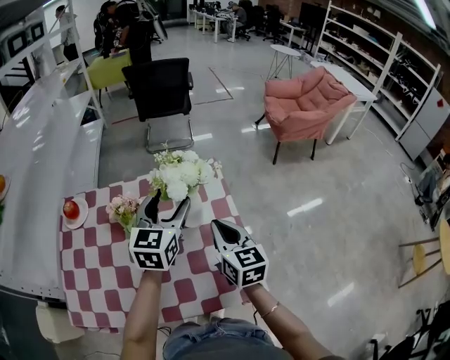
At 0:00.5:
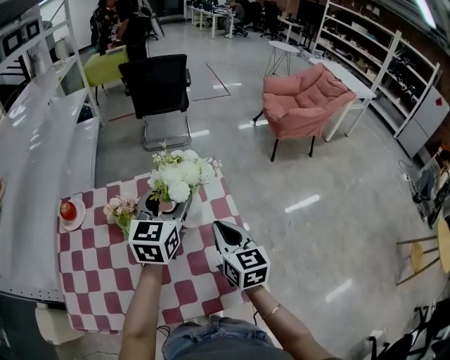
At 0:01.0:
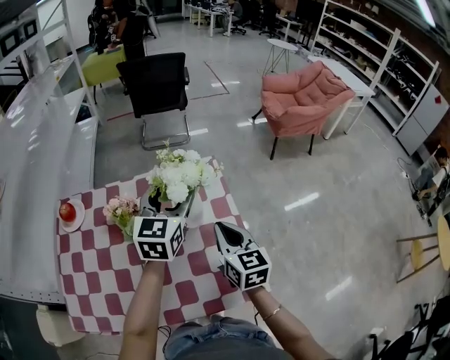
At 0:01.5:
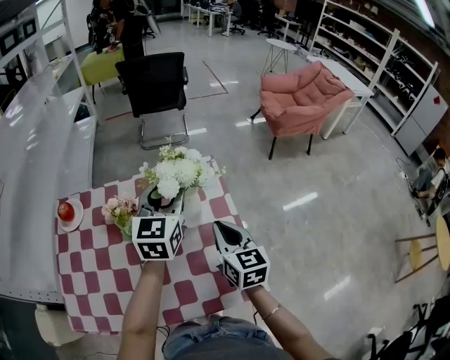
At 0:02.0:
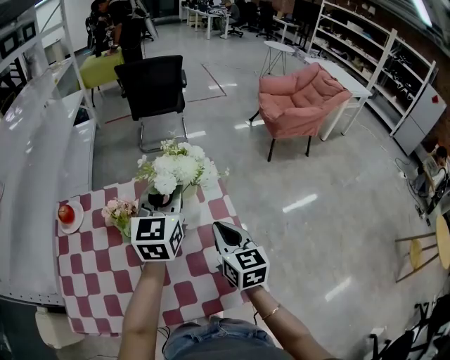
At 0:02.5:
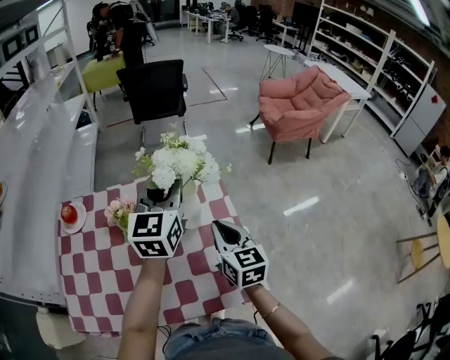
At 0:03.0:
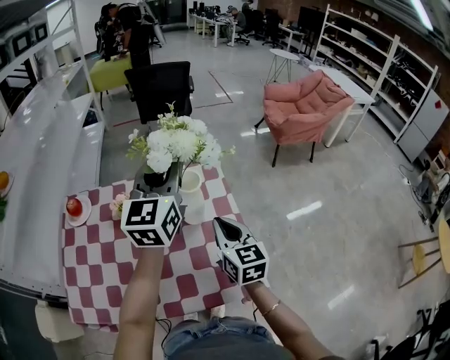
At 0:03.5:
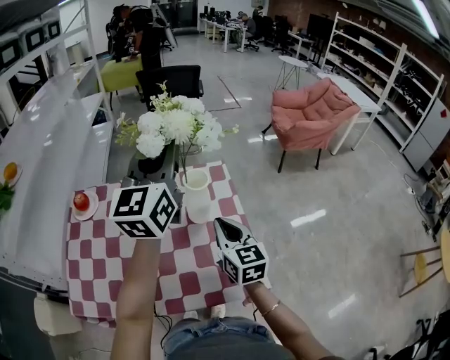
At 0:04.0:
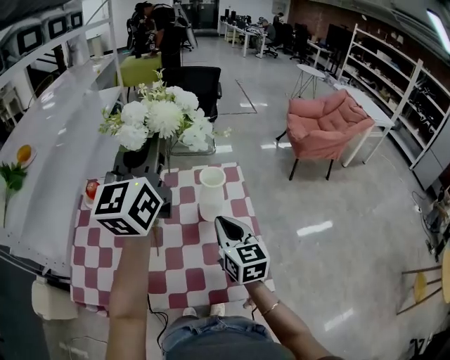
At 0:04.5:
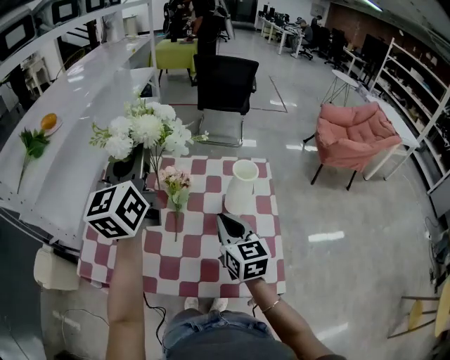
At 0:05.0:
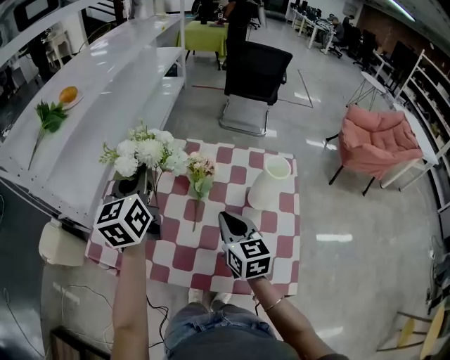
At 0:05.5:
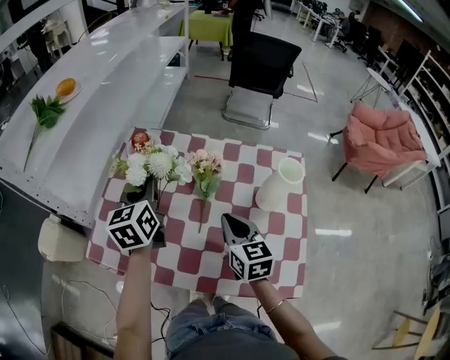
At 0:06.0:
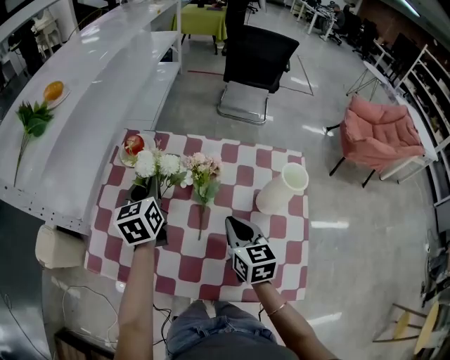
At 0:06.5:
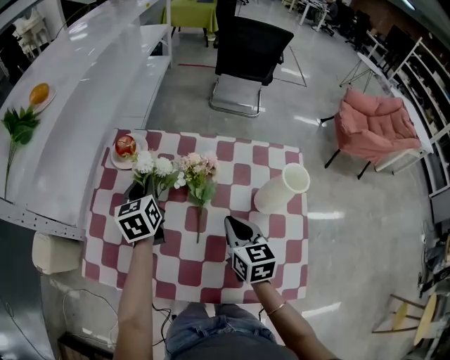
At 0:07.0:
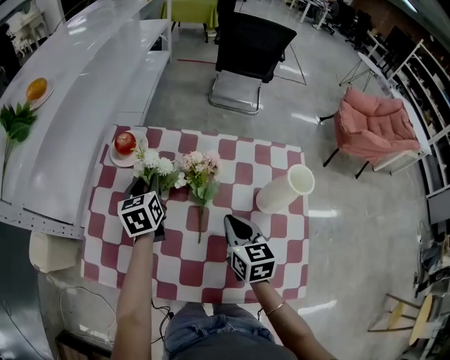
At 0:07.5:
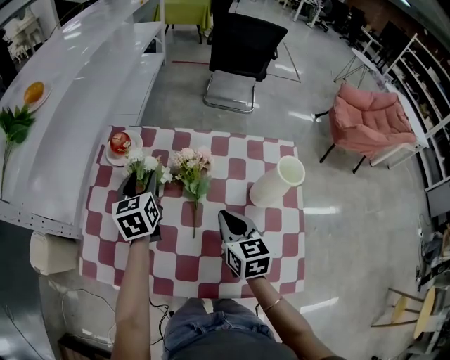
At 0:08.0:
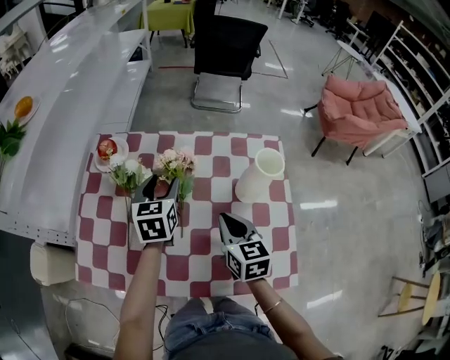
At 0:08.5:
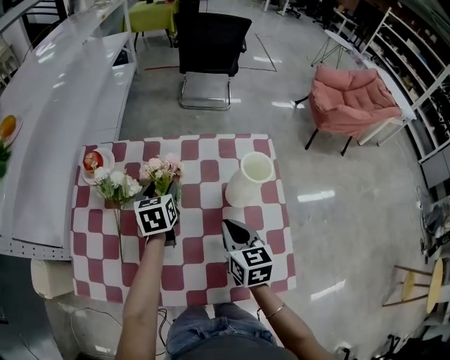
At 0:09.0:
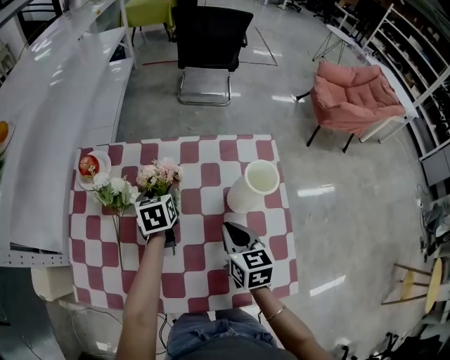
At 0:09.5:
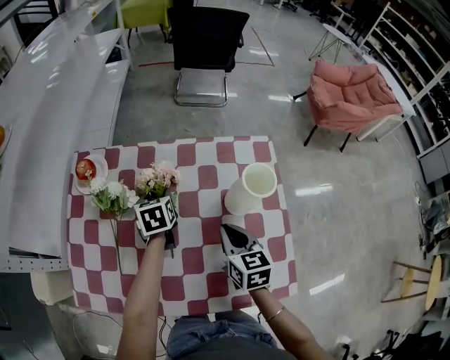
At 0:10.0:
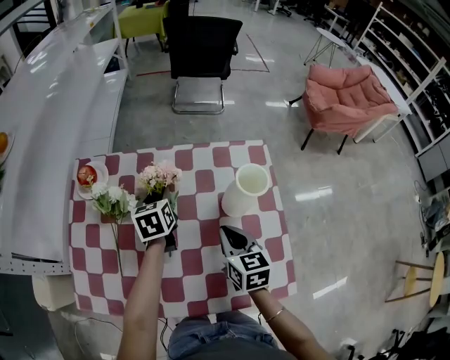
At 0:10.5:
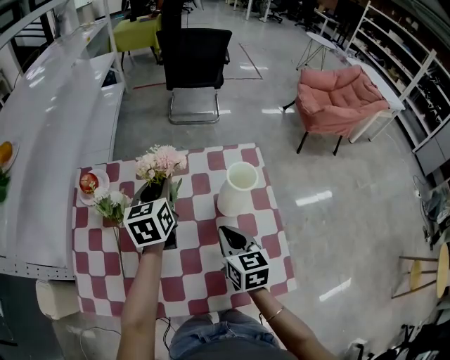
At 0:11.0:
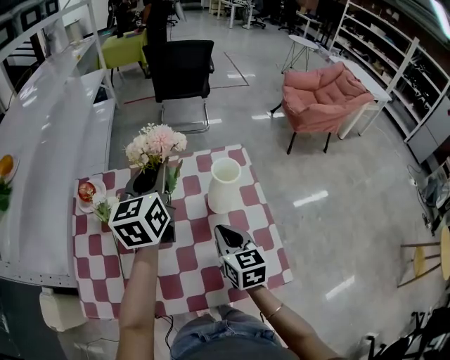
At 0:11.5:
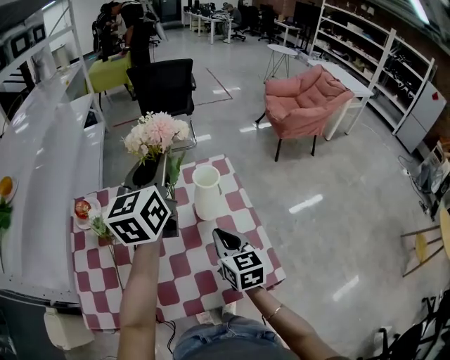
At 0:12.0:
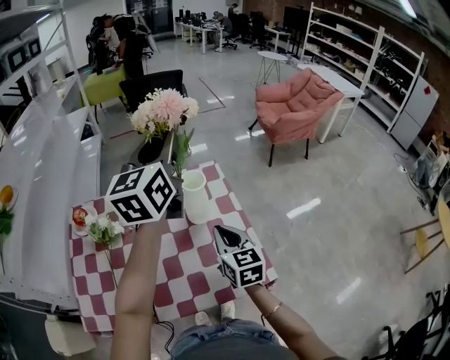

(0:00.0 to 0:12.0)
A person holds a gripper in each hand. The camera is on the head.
0:00.0 - 0:02.0: The left gripper changes place by about 5 cm, and closes its fingers.
0:02.0 - 0:04.0: The right gripper moves to the left, some 5 cm. The left gripper travels upward, to the left and backward by about 20 cm, and rotates about 20 degrees.
0:04.0 - 0:06.0: The left gripper moves downward and to the left, some 40 cm, and tips its fingers downward by some 40 degrees. The right gripper moves to the left, downward and forward, approximately 20 cm.
0:06.0 - 0:08.0: The left gripper heads to the right, covering roughly 10 cm, and opens.
0:08.0 - 0:10.0: The right gripper shifts by approximately 5 cm, while the left gripper is displaced downward and forward by roughly 10 cm, and closes its fingers.
0:10.0 - 0:12.0: The left gripper is displaced upward and to the right by some 40 cm, and tips its fingers upward by roughly 50 degrees. Meanwhile the right gripper moves upward, to the right and backward, some 15 cm.

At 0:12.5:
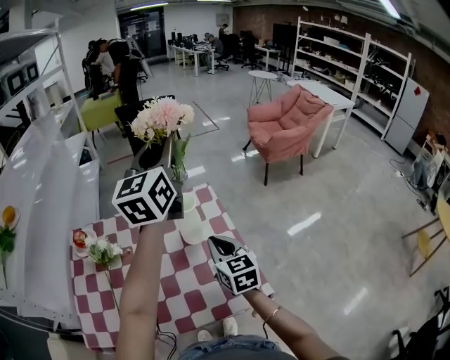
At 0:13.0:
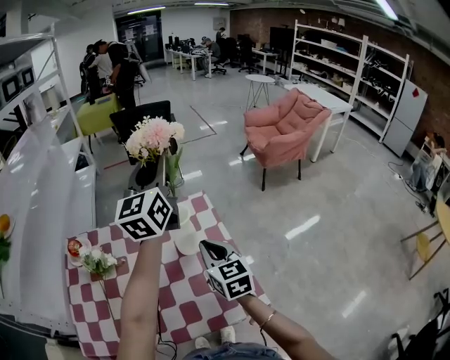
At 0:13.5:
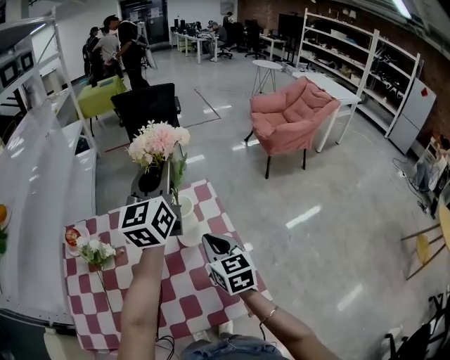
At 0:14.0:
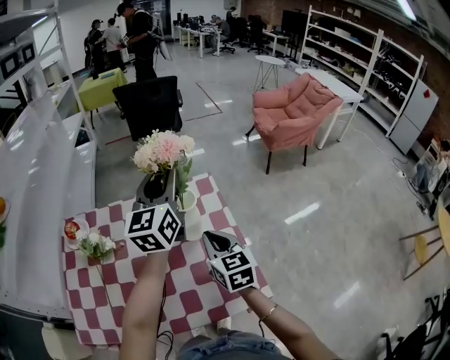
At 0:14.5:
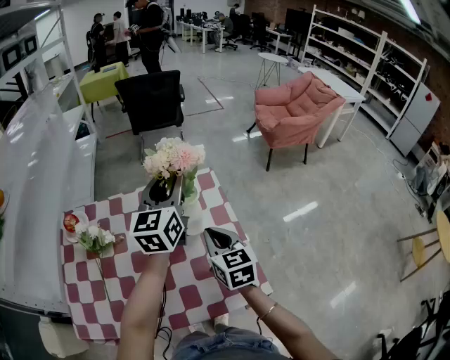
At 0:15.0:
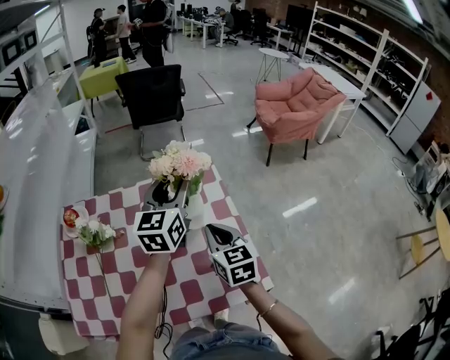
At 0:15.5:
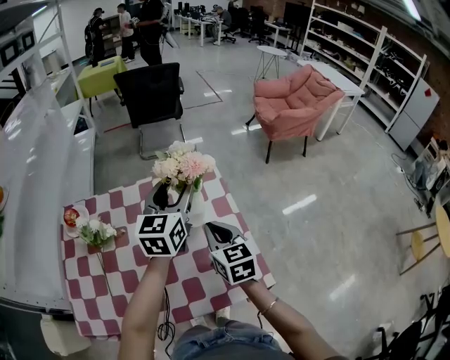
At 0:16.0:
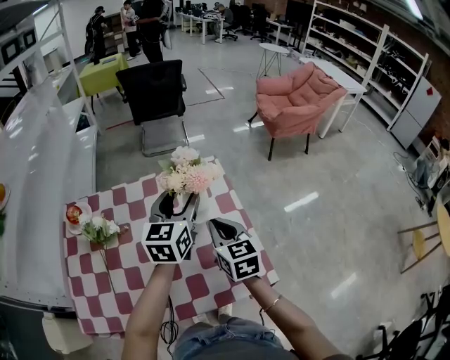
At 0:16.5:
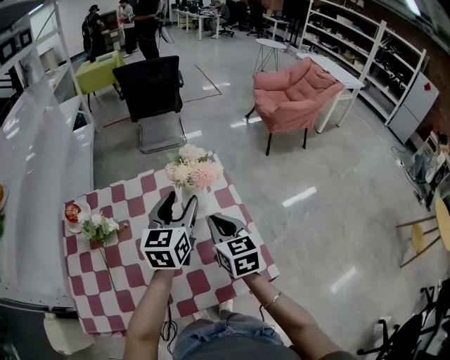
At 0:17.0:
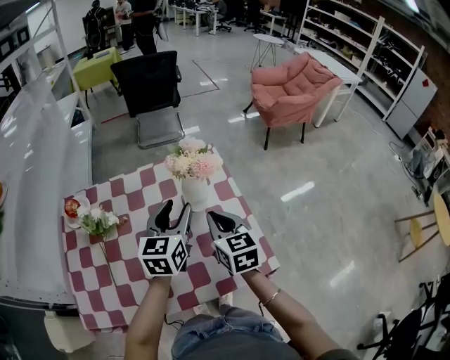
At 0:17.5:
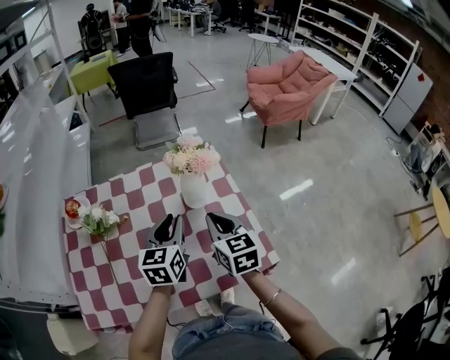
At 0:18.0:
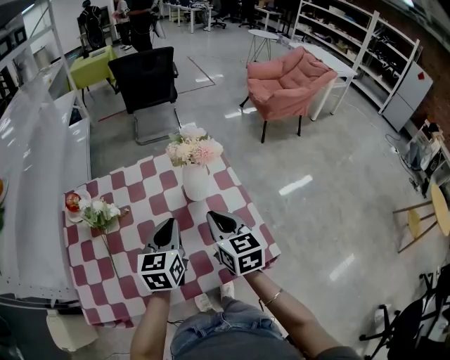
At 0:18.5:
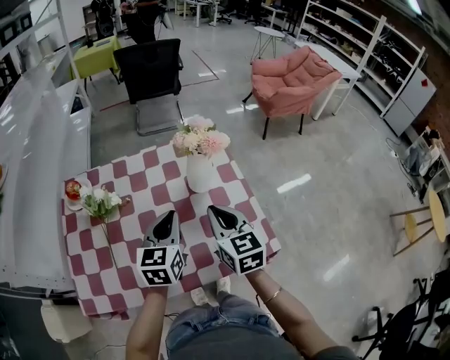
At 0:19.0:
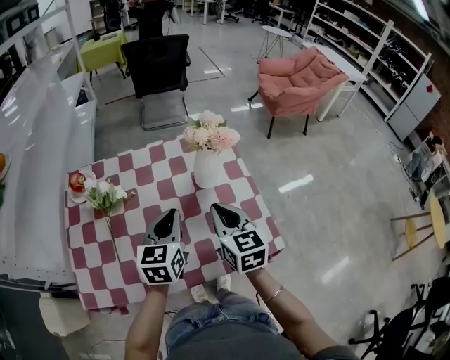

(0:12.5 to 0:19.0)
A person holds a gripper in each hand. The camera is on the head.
0:12.5 - 0:14.5: The left gripper is displaced downward by approximately 15 cm.
0:14.5 - 0:17.0: The left gripper goes about 15 cm downward and backward.
0:17.0 - 0:19.0: The right gripper moves backward, approximately 5 cm. Meanwhile the left gripper moves backward and to the left, some 10 cm, and closes.

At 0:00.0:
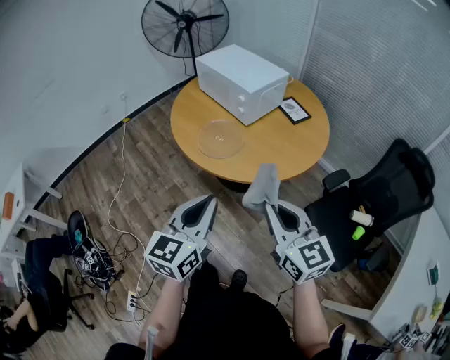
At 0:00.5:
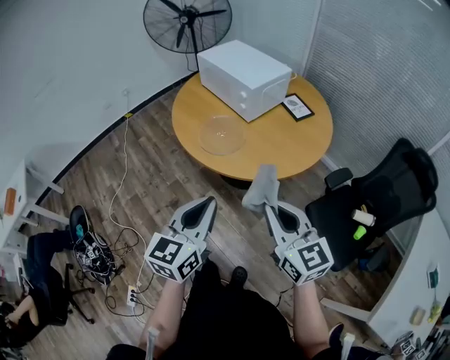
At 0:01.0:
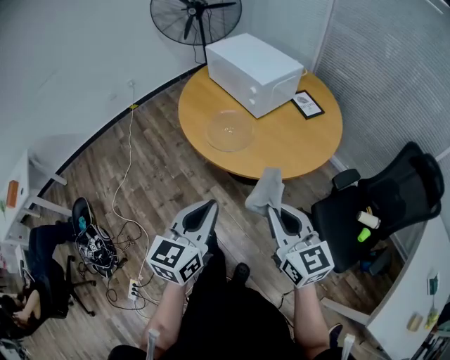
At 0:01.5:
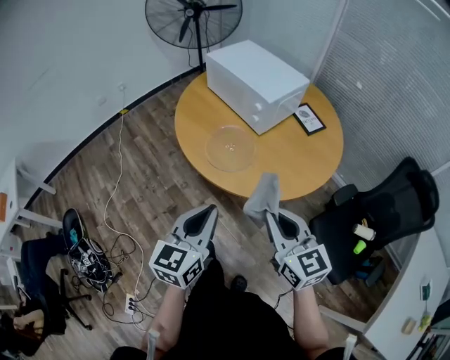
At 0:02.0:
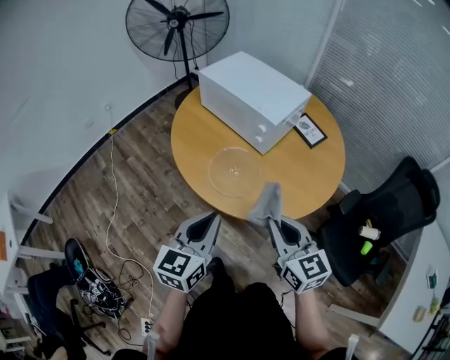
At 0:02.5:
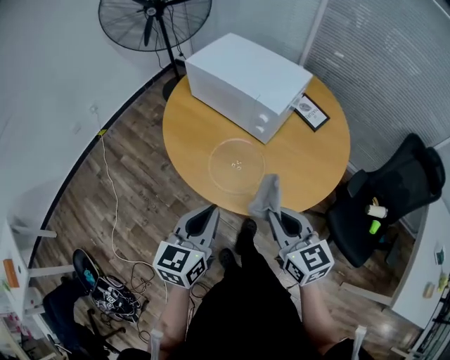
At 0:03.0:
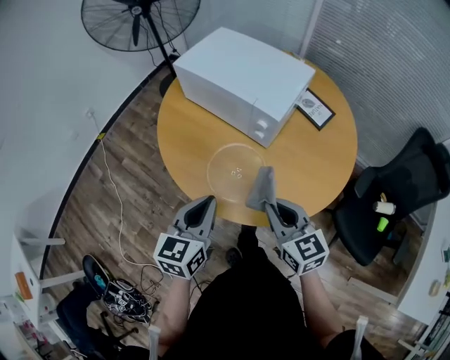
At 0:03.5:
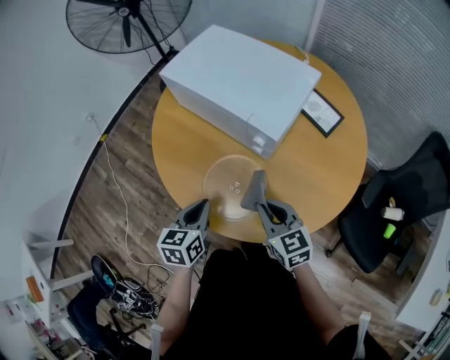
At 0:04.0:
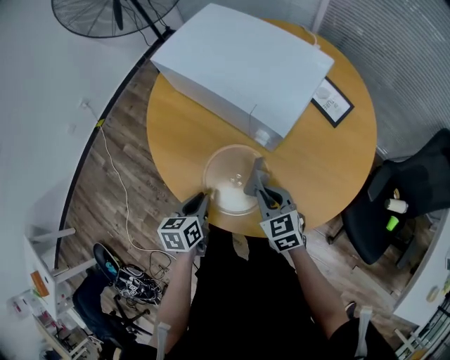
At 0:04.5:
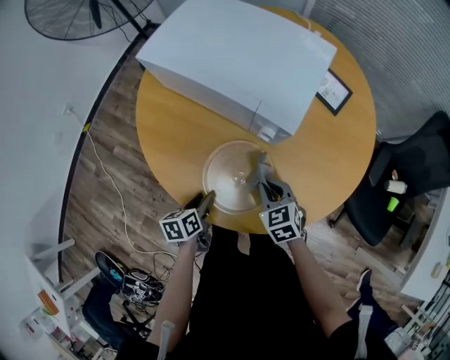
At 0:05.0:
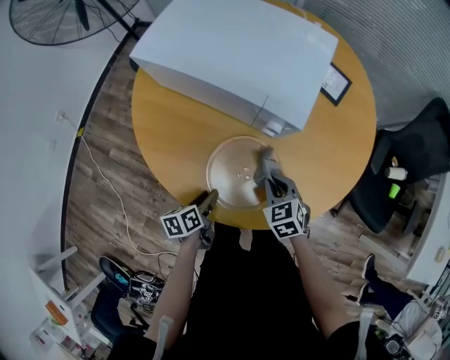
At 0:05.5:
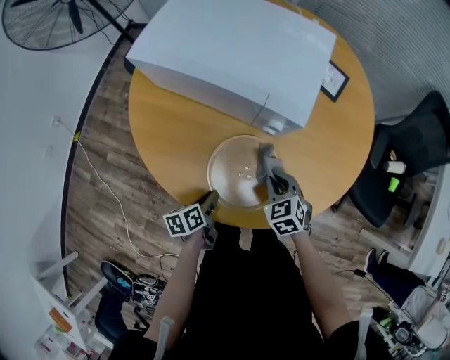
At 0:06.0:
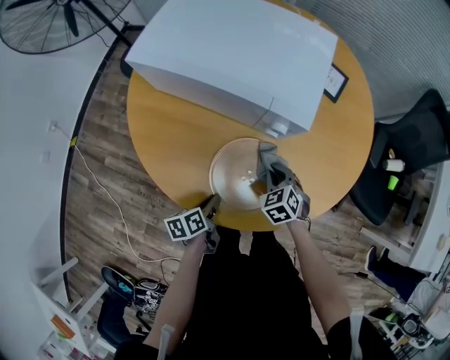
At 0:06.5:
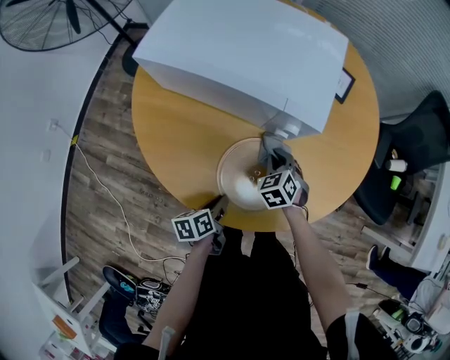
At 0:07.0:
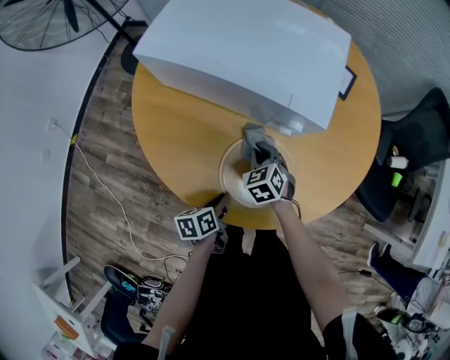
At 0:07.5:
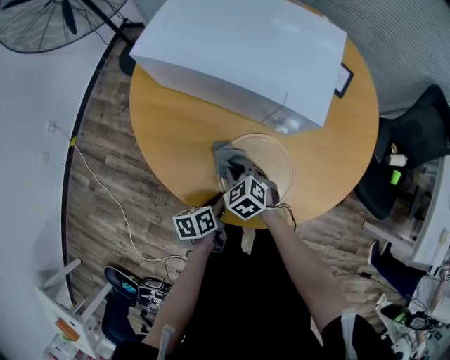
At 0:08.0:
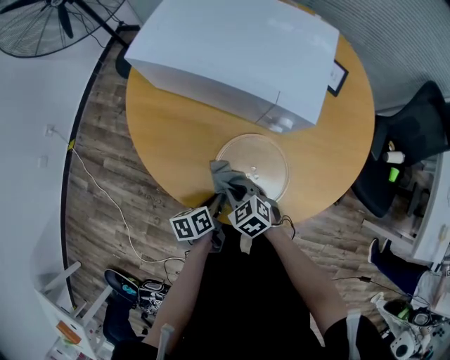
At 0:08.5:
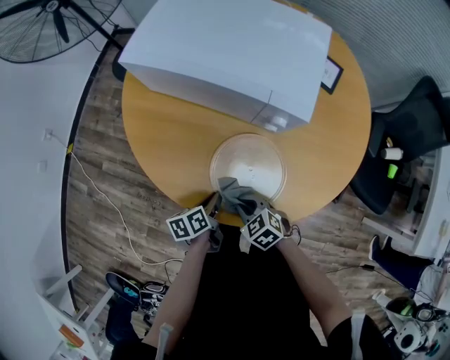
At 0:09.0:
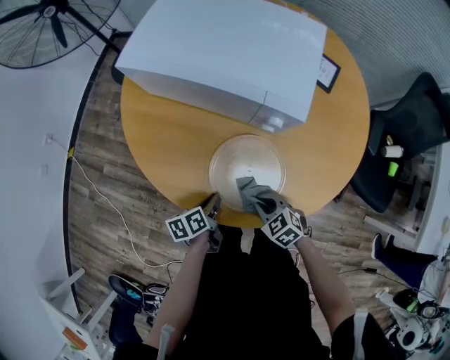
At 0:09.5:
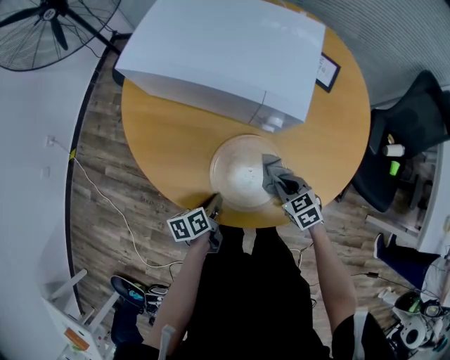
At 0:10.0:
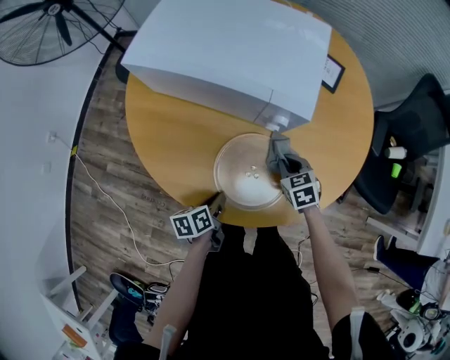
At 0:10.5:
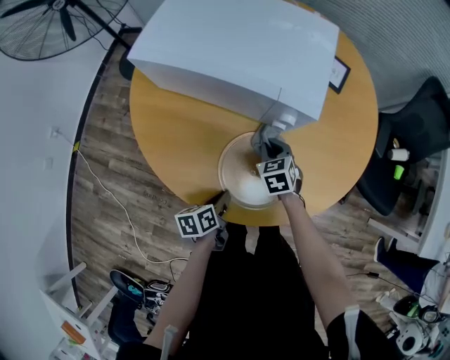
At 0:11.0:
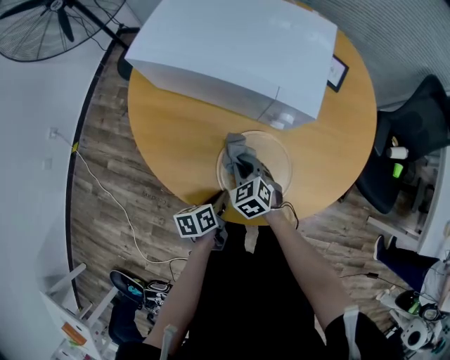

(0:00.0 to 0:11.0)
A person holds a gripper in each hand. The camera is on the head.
0:00.0 - 0:02.0: The two grippers go about 20 cm forward and to the left.
0:02.0 - 0:03.5: Both grippers travel together forward and downward, about 25 cm. The left gripper turns by roughly 20 degrees.
0:03.5 - 0:05.5: Both grippers travel together downward, approximately 15 cm. The right gripper changes its angle by roughly 30 degrees. Meanwhile the left gripper swivels roughly 40 degrees, and opens, then closes again.
0:05.5 - 0:07.5: The right gripper shifts about 15 cm to the left.
0:07.5 - 0:09.0: The right gripper moves backward and to the right, approximately 15 cm.
0:09.0 - 0:11.0: The right gripper heads forward and to the left, covering approximately 15 cm.
